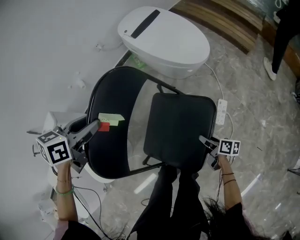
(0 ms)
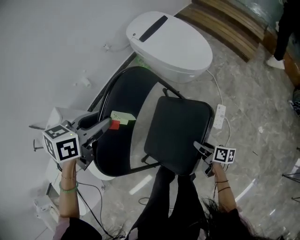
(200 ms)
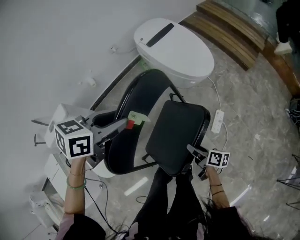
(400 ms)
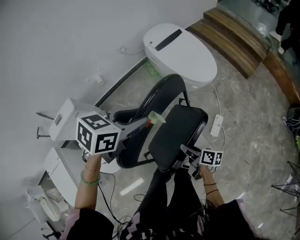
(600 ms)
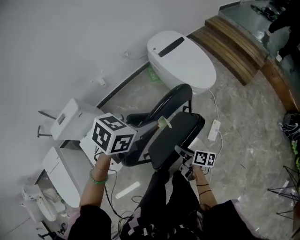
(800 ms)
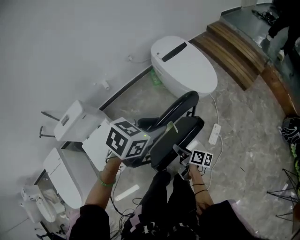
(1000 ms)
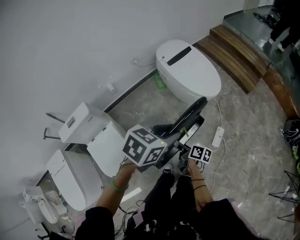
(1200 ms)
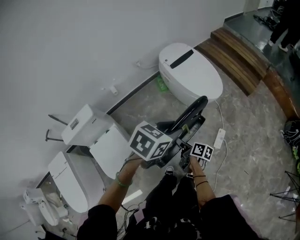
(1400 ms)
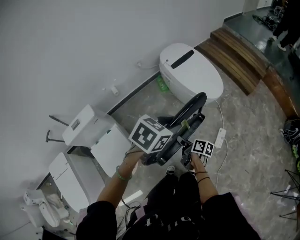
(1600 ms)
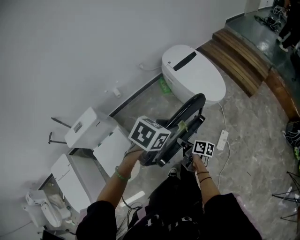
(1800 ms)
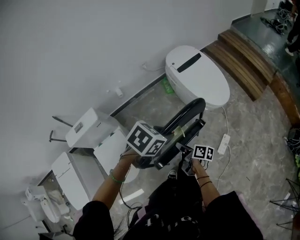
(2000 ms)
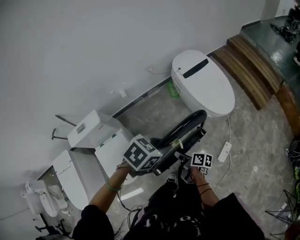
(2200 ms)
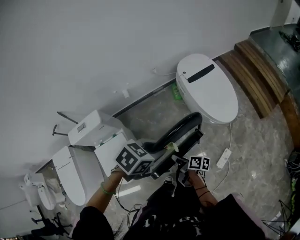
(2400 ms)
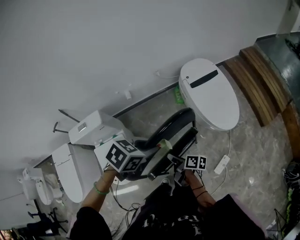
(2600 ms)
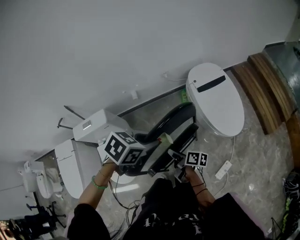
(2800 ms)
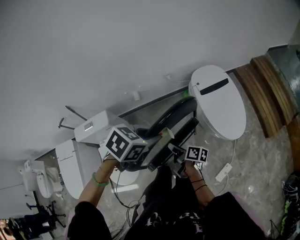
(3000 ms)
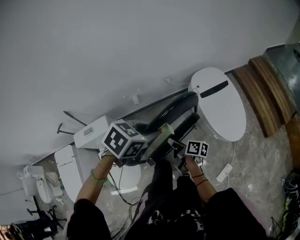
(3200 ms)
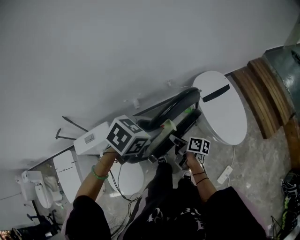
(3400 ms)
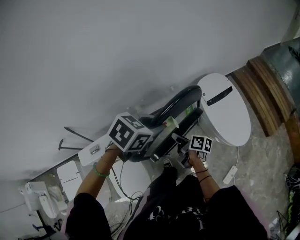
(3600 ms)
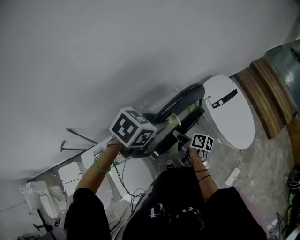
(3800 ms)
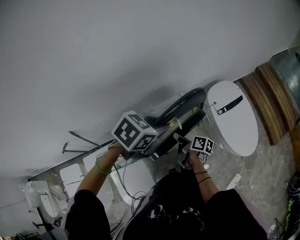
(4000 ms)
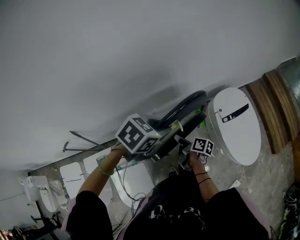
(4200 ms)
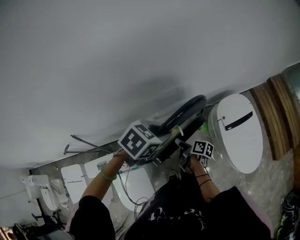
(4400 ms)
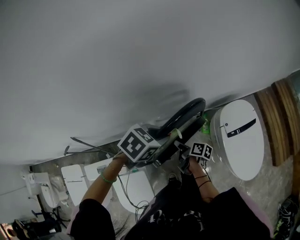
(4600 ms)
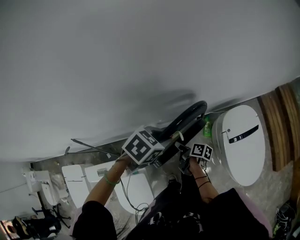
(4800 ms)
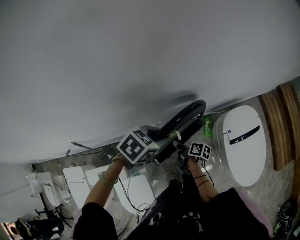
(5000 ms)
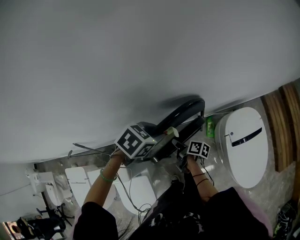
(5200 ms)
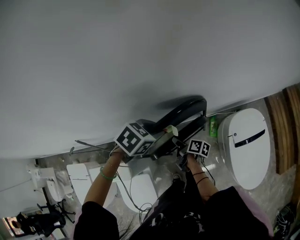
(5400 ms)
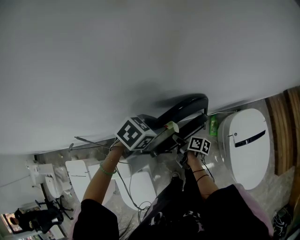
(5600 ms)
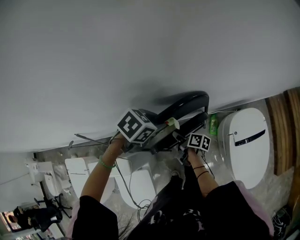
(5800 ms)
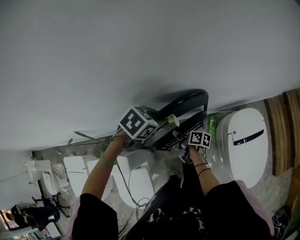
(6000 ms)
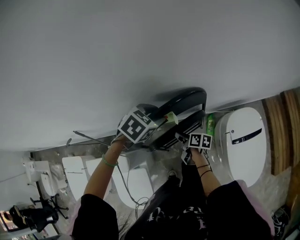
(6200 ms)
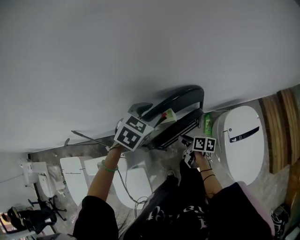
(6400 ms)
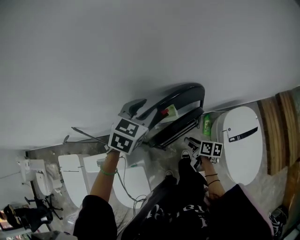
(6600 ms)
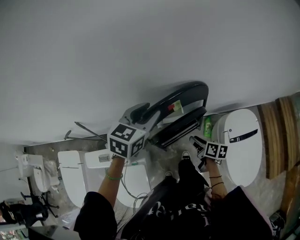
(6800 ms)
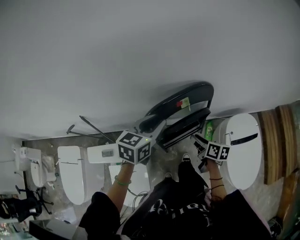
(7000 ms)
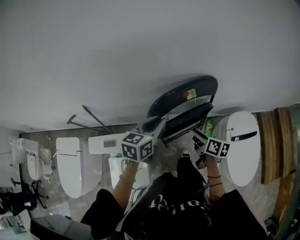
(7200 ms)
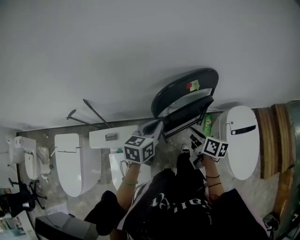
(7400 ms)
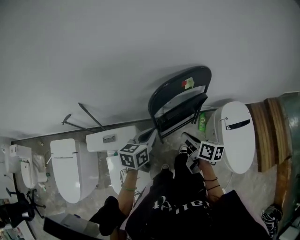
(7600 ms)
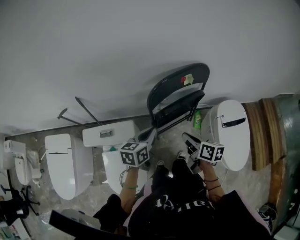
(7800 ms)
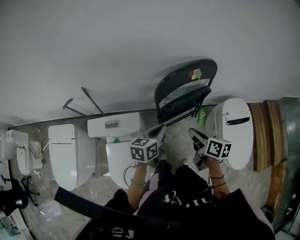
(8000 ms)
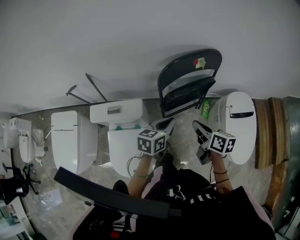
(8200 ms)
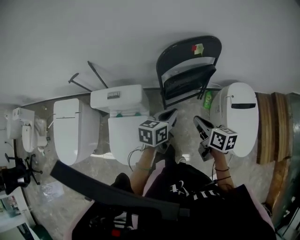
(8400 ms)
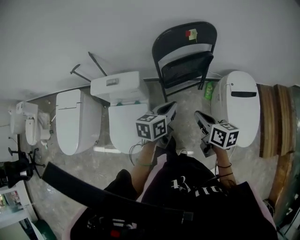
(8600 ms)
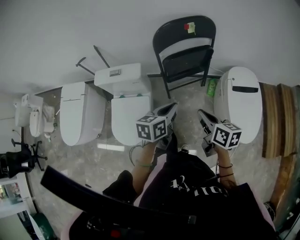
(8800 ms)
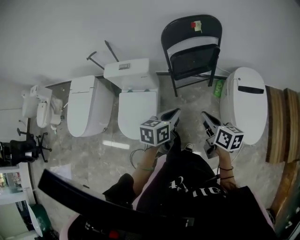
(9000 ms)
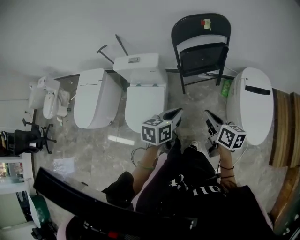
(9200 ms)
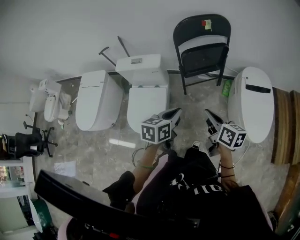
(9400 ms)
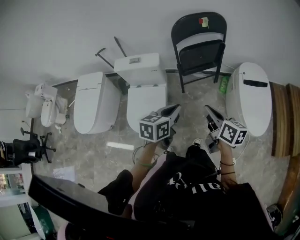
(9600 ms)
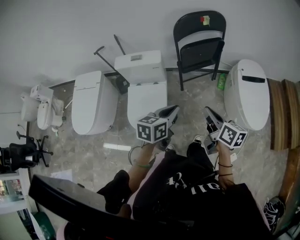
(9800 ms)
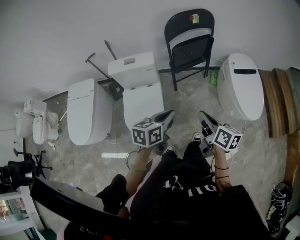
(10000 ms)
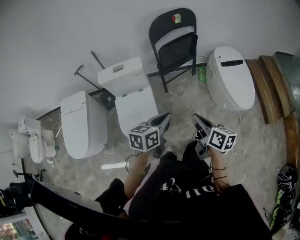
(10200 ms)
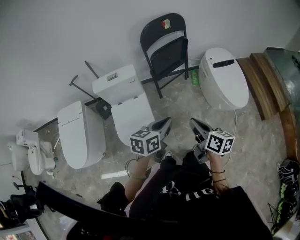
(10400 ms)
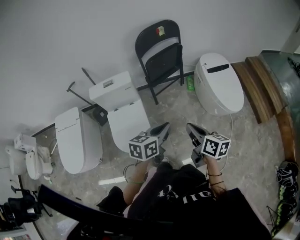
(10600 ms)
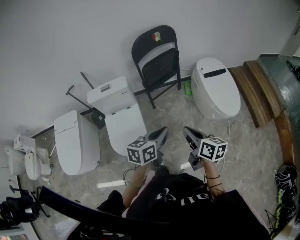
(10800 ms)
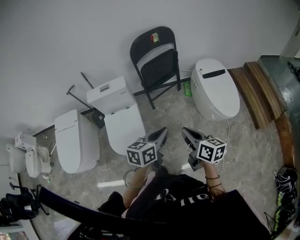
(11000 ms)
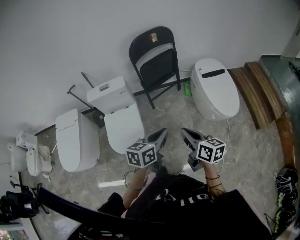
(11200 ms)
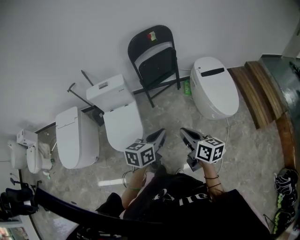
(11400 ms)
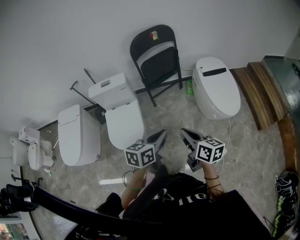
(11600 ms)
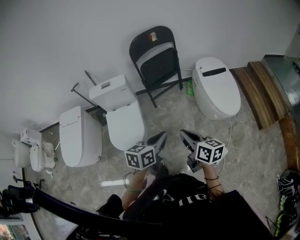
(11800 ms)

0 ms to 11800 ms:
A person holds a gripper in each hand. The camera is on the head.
0 ms to 1400 ms: The left gripper shifts approximately 15 cm upward and backward. Meanwhile the right gripper is displaced to the left and upward by approximately 35 cm, and closes.
1400 ms to 3000 ms: The left gripper shifts by some 20 cm. Meanwhile the right gripper changes place by some 25 cm, and turns by approximately 30 degrees.
3000 ms to 4400 ms: Both grippers travel together forward and to the left, some 35 cm.
4400 ms to 6000 ms: The left gripper ends up approximately 20 cm from where it was; the right gripper moves some 15 cm.
6000 ms to 7400 ms: The left gripper shifts about 25 cm backward and to the left, and angles its fingers upward, by about 40 degrees, while the right gripper goes approximately 25 cm upward and backward, and changes its angle by approximately 30 degrees.
7400 ms to 8800 ms: The grippers both shift backward by roughly 30 cm.
8800 ms to 10400 ms: The two grippers go roughly 25 cm backward and to the left. The right gripper turns by about 20 degrees.
10400 ms to 11800 ms: The grippers both shift to the right and backward by some 15 cm.

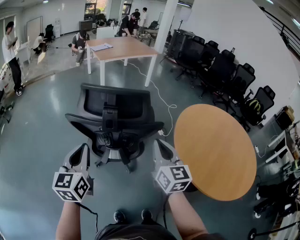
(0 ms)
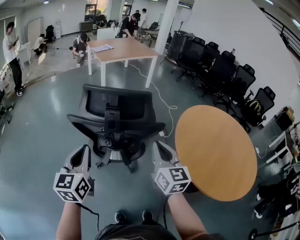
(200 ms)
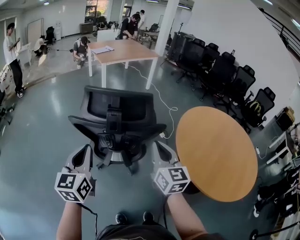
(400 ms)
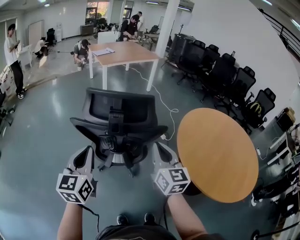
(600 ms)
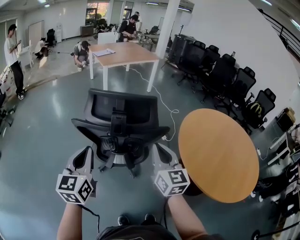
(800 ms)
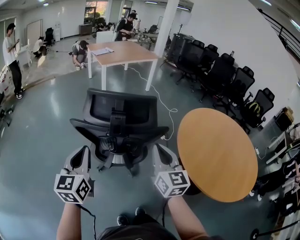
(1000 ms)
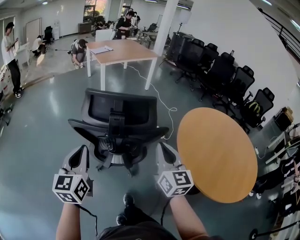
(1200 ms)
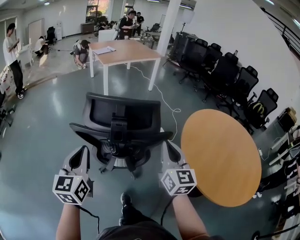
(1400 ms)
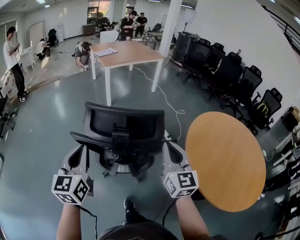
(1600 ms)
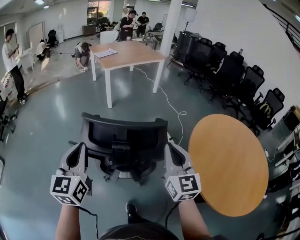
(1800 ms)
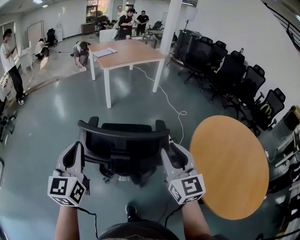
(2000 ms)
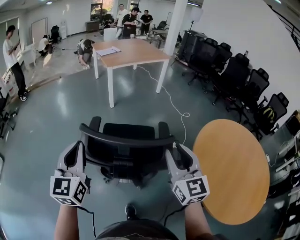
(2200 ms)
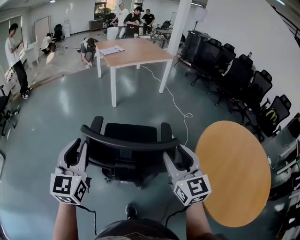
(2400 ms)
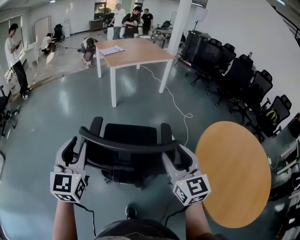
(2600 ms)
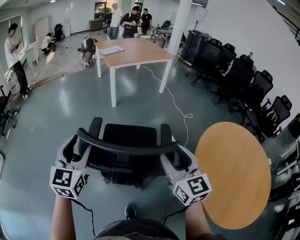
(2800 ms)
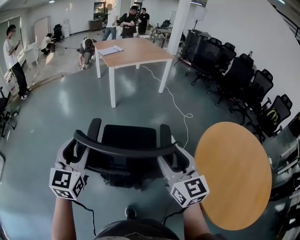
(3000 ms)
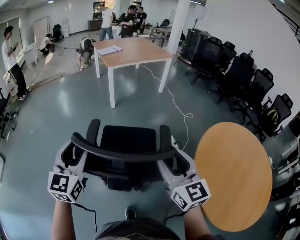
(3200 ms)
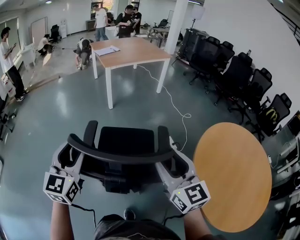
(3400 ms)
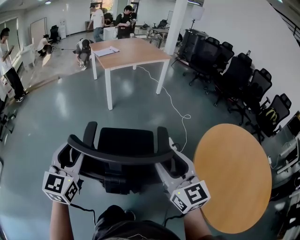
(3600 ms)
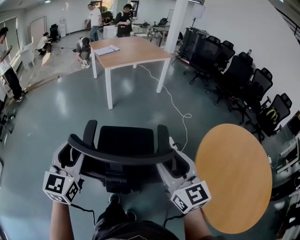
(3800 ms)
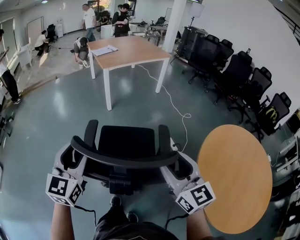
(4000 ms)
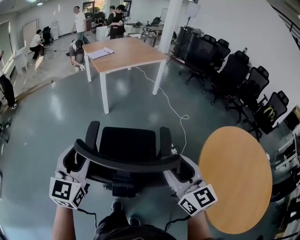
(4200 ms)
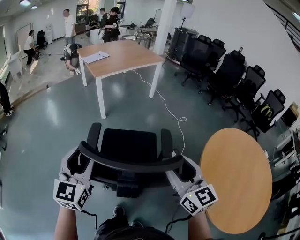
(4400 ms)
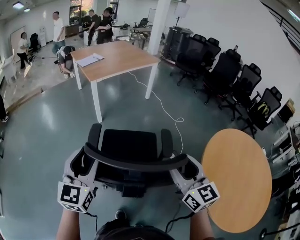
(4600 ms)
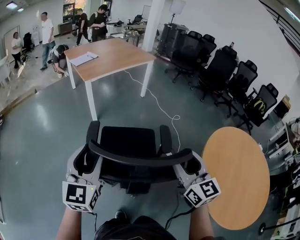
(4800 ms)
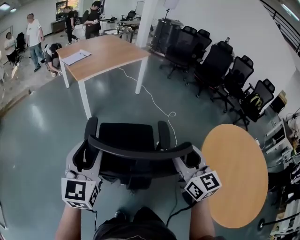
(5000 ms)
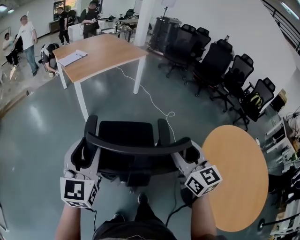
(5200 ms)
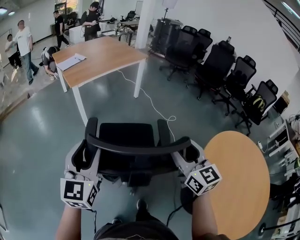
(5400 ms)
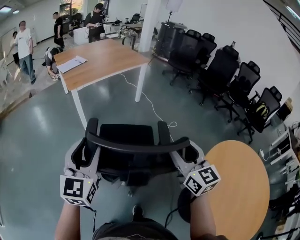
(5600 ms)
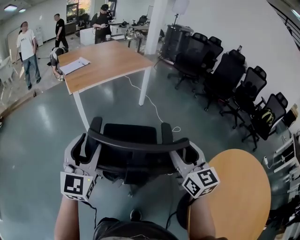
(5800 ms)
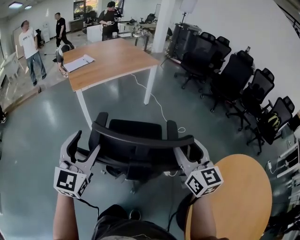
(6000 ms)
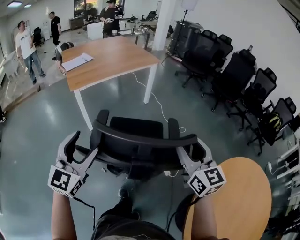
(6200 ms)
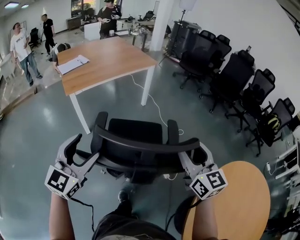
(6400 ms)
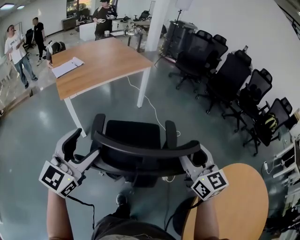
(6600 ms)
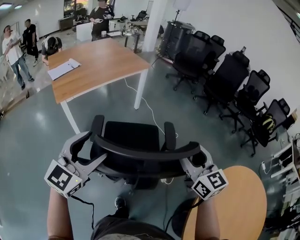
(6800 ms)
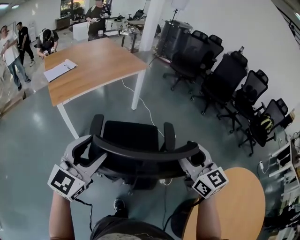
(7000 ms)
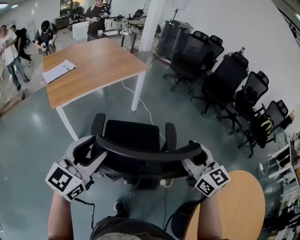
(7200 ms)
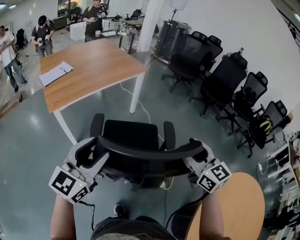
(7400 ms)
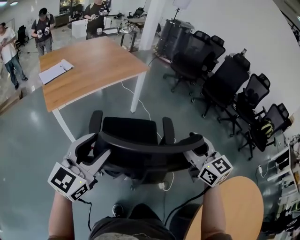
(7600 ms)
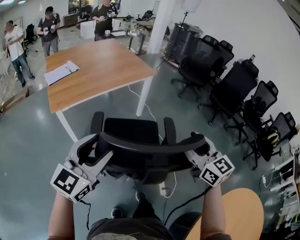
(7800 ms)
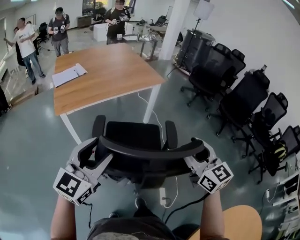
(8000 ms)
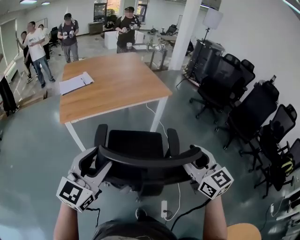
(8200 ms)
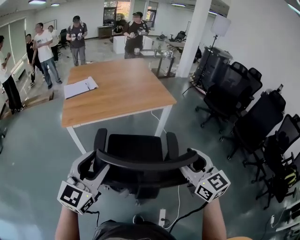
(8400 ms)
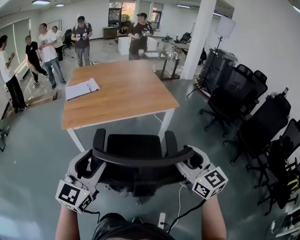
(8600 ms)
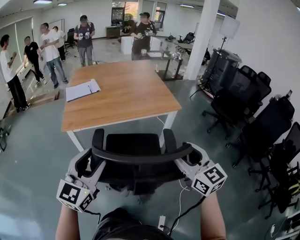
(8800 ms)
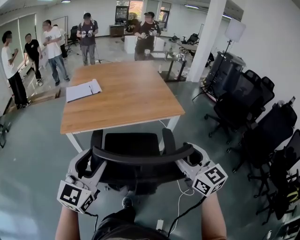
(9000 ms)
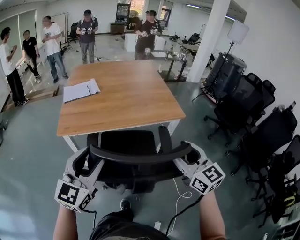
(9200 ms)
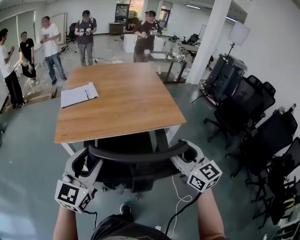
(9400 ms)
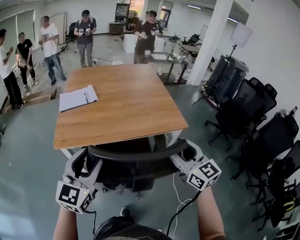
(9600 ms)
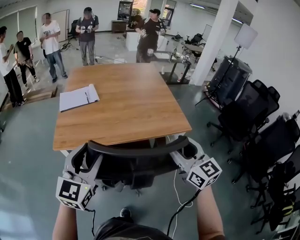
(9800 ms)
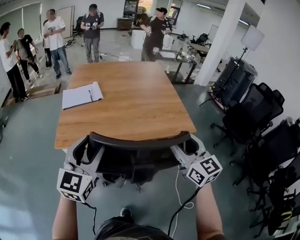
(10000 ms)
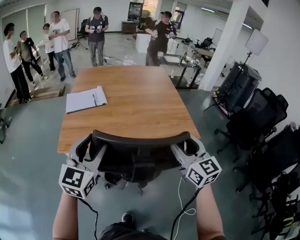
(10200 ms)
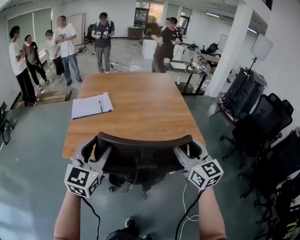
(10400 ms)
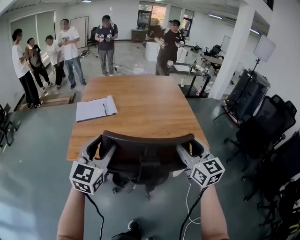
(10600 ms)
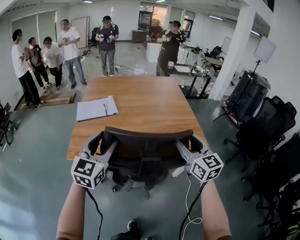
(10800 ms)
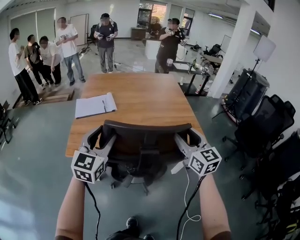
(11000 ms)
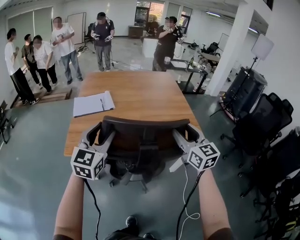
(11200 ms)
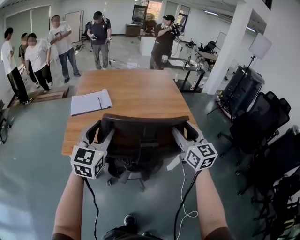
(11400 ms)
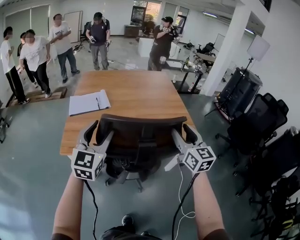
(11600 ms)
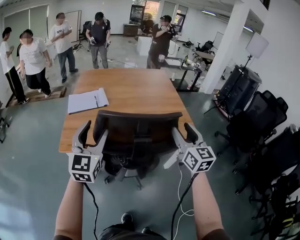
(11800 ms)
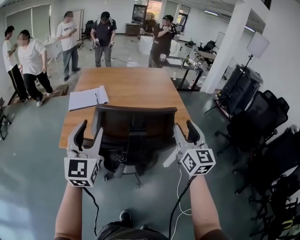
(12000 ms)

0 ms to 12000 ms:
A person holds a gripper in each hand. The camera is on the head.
0 ms to 1600 ms: The grippers both shift forward by roughly 5 cm.
1600 ms to 3000 ms: The two grippers go roughly 10 cm forward. The left gripper opens. Meanwhile the right gripper opens up.
3000 ms to 4400 ms: Both grippers move forward, roughly 10 cm.
4400 ms to 6000 ms: The grippers both shift forward and to the right by some 35 cm.
6000 ms to 7600 ms: Both grippers move forward, roughly 20 cm. The left gripper swivels about 20 degrees.
7600 ms to 9000 ms: The right gripper ends up about 30 cm from where it was, and rotates about 30 degrees. The left gripper shifts by some 20 cm, and rotates approximately 40 degrees.
9000 ms to 10400 ms: Both grippers move forward, roughly 25 cm.
10400 ms to 12000 ms: The left gripper moves about 5 cm.
